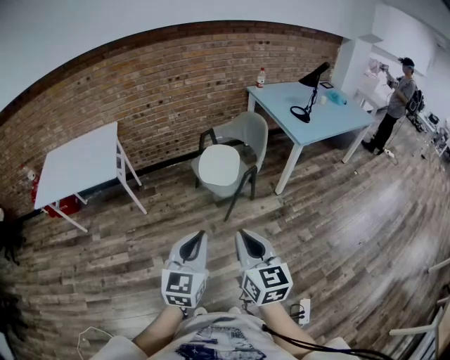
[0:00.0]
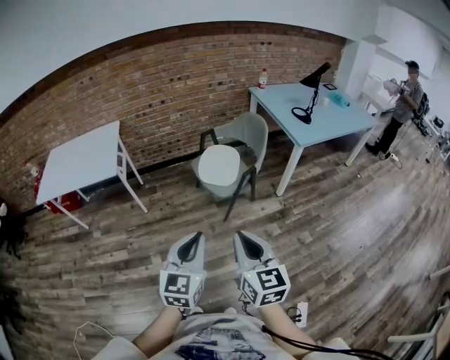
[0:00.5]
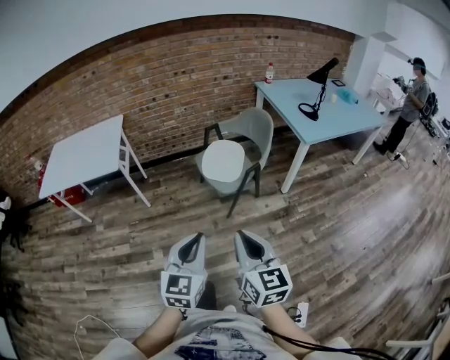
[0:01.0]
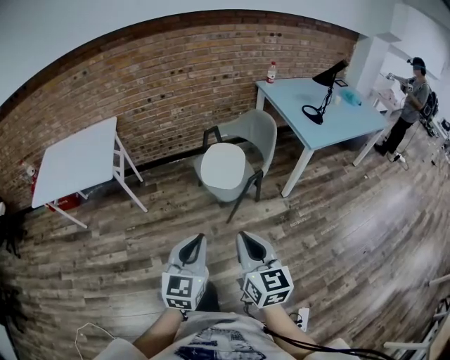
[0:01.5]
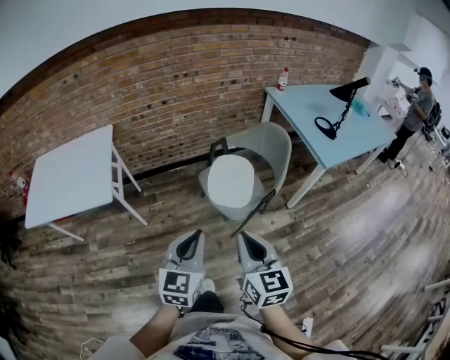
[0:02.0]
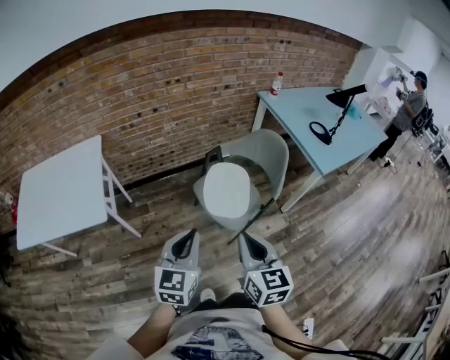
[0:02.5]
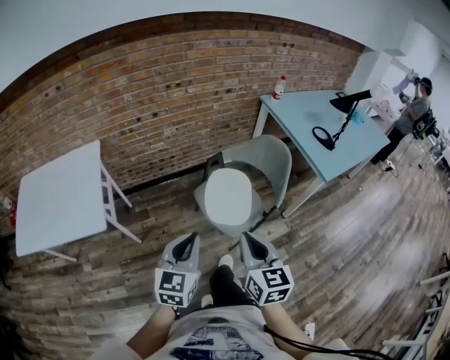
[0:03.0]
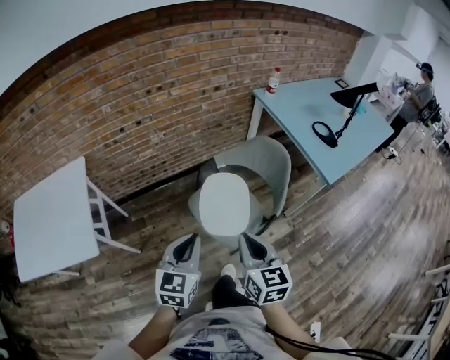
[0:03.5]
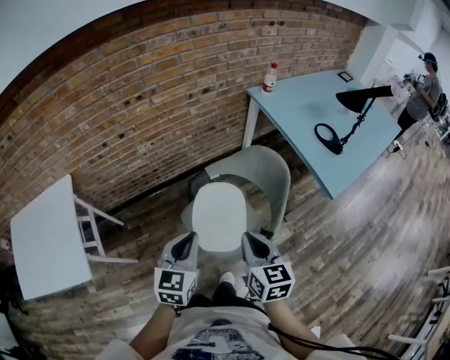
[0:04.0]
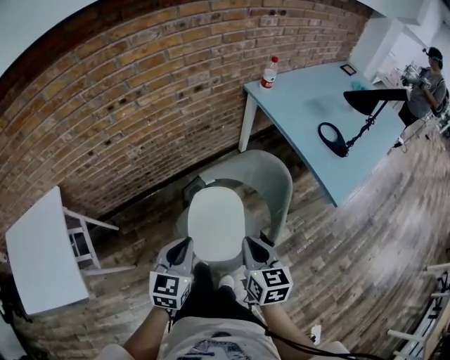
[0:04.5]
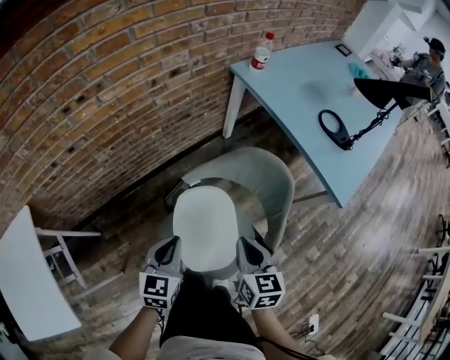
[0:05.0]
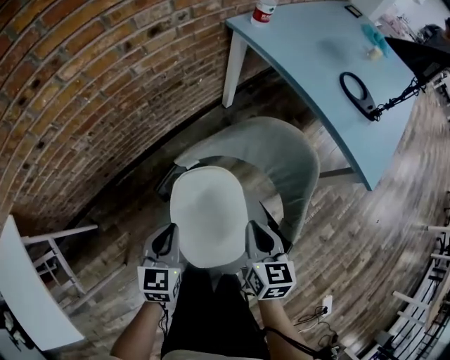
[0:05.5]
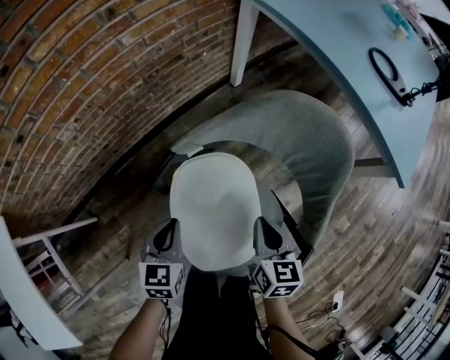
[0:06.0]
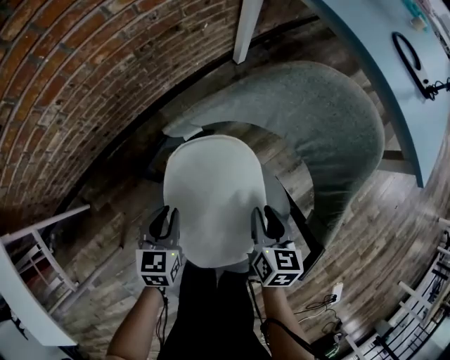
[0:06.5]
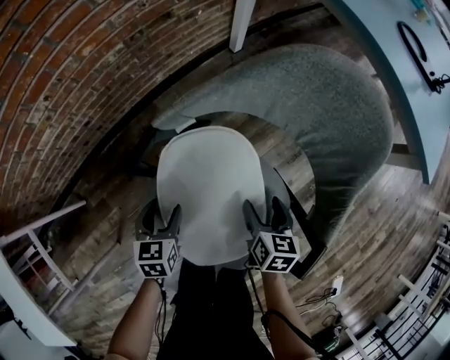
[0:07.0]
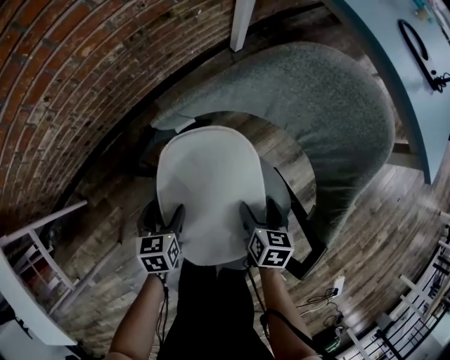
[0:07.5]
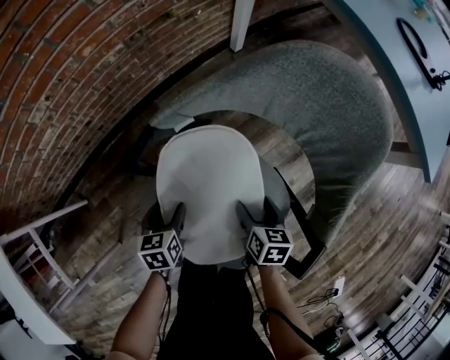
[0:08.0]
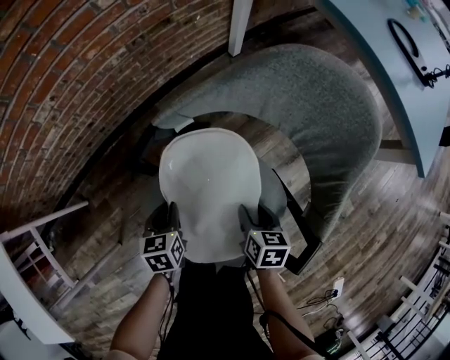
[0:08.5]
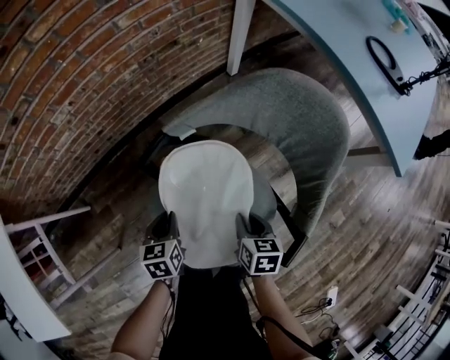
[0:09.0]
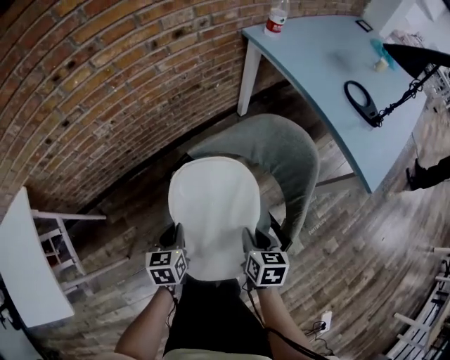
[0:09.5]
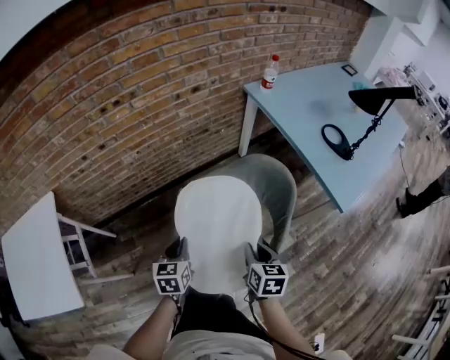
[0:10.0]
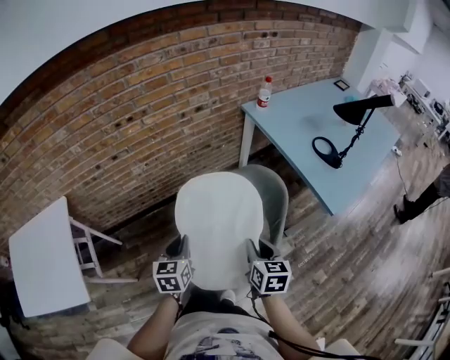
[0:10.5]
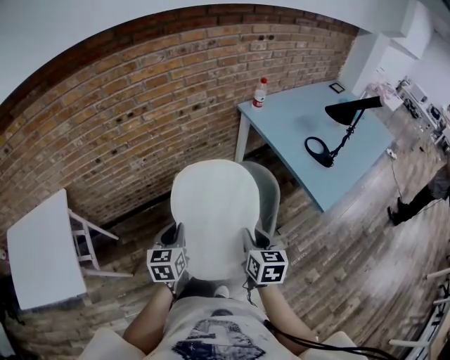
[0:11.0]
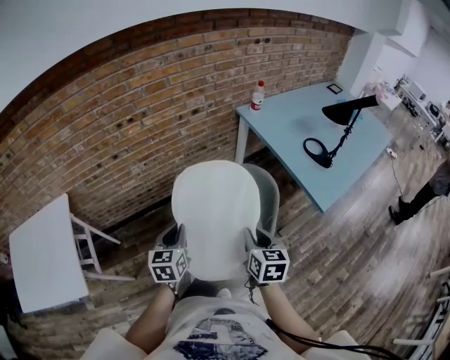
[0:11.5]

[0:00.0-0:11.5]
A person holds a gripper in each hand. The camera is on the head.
0:00.0 to 0:02.0: Both grippers travel together forward, some 25 cm.
0:02.0 to 0:04.0: The two grippers go some 35 cm forward.
0:04.0 to 0:06.0: Both grippers travel together downward and forward, about 40 cm. The right gripper rotates about 20 degrees.
0:06.0 to 0:07.5: Both grippers move downward, some 15 cm. The right gripper opens its fingers; the left gripper changes its angle by approximately 20 degrees, and opens its fingers.
0:07.5 to 0:09.5: Both grippers travel together upward, approximately 20 cm. The left gripper closes up; the right gripper closes.
0:09.5 to 0:11.5: The two grippers go roughly 30 cm upward.

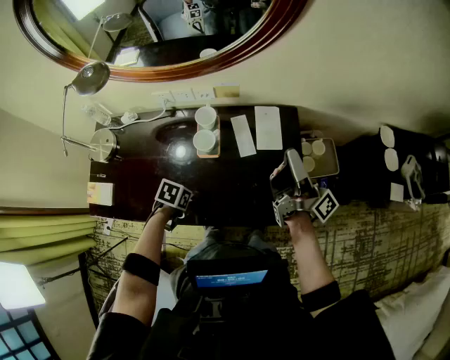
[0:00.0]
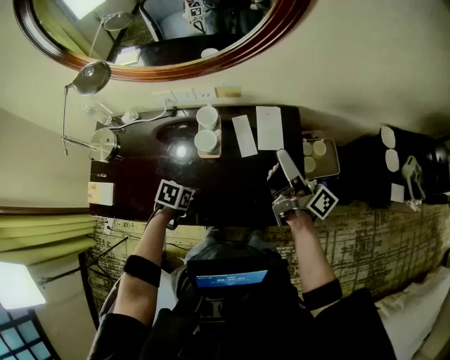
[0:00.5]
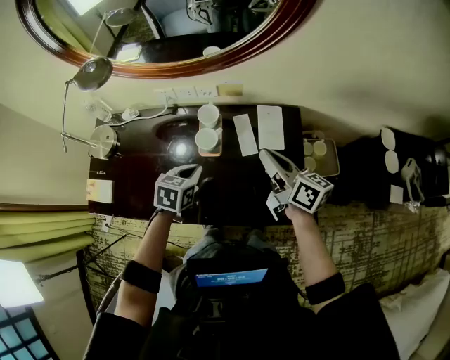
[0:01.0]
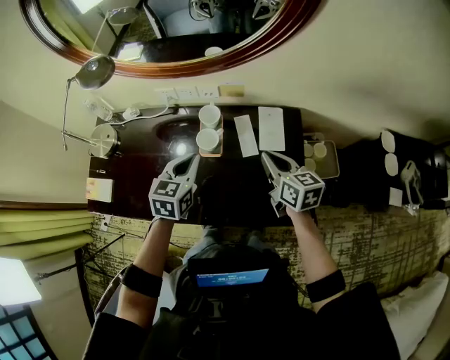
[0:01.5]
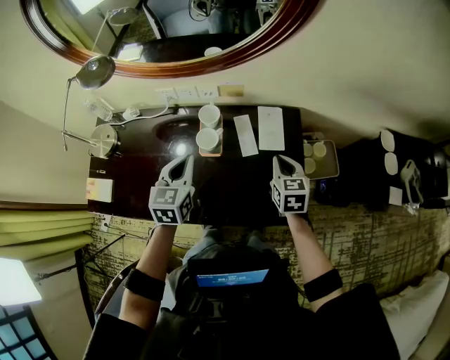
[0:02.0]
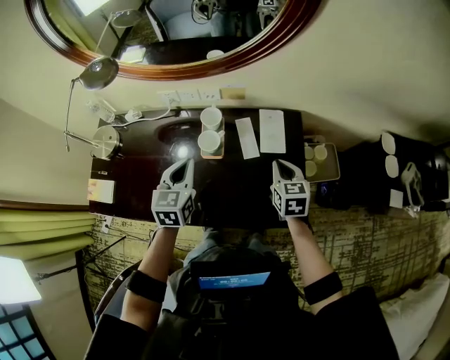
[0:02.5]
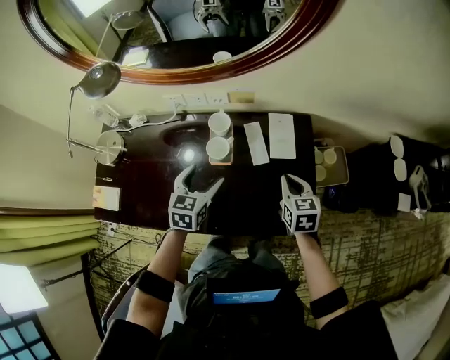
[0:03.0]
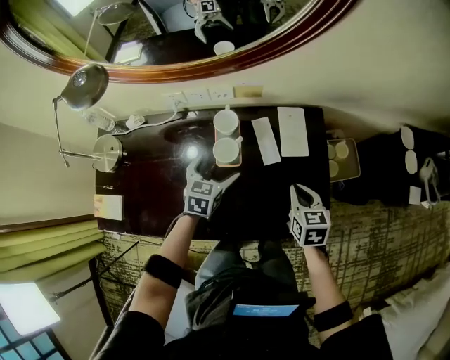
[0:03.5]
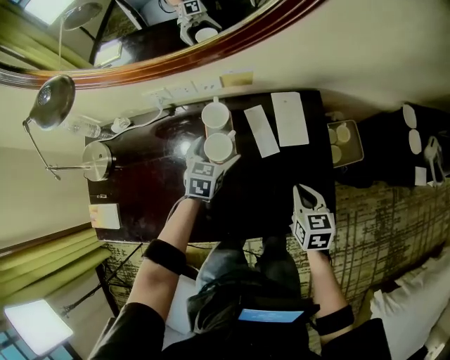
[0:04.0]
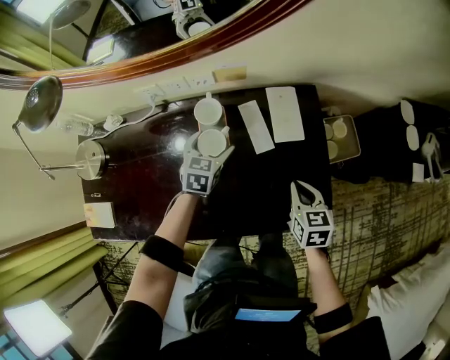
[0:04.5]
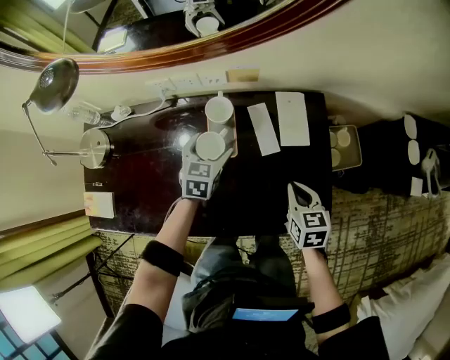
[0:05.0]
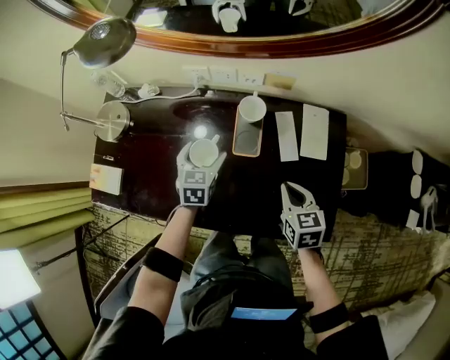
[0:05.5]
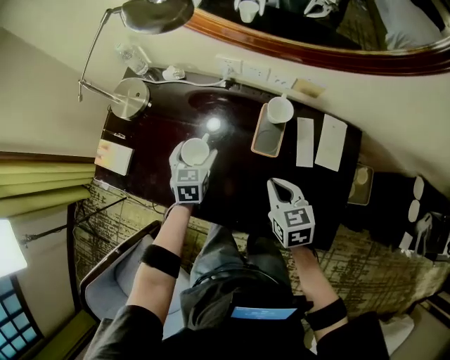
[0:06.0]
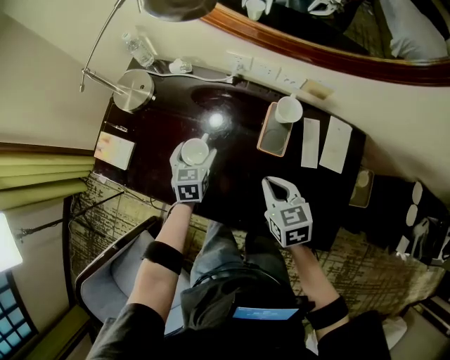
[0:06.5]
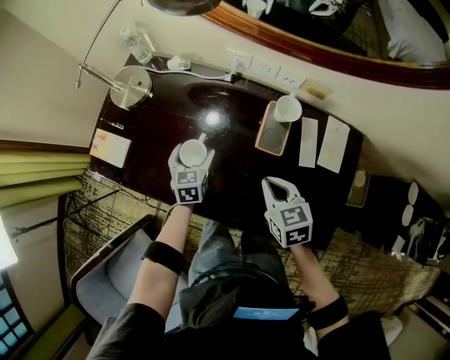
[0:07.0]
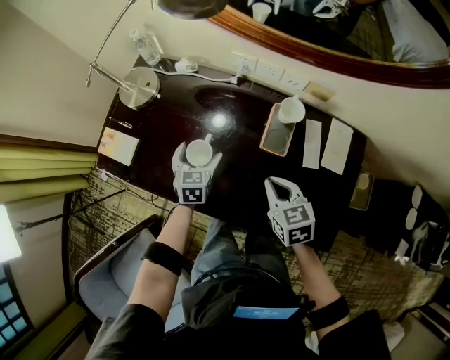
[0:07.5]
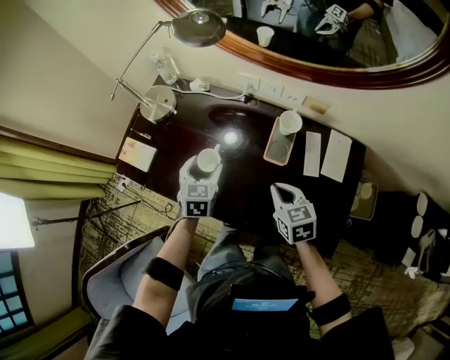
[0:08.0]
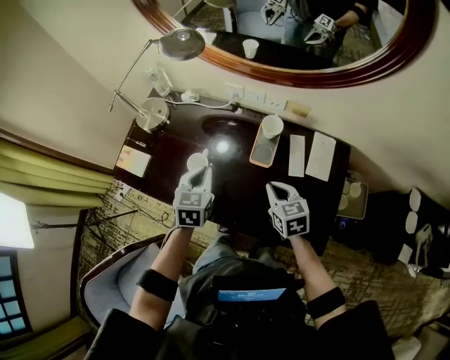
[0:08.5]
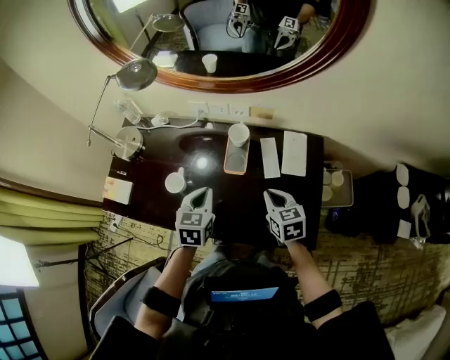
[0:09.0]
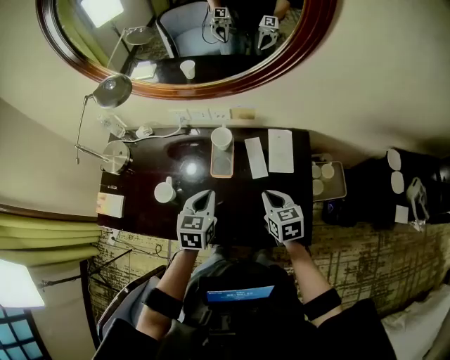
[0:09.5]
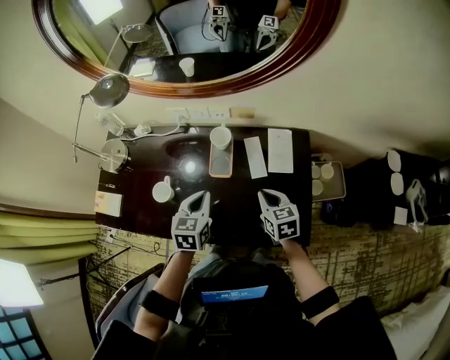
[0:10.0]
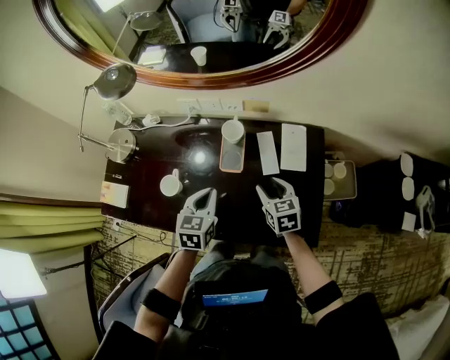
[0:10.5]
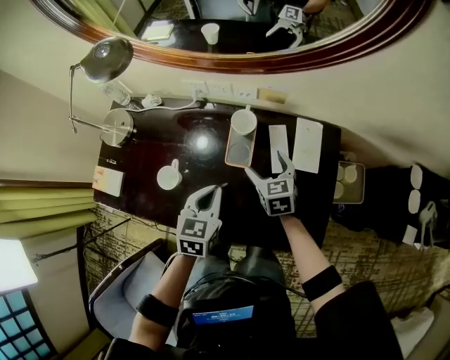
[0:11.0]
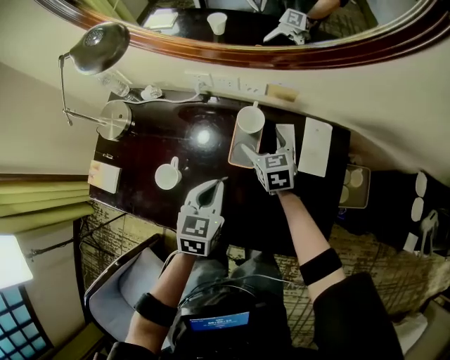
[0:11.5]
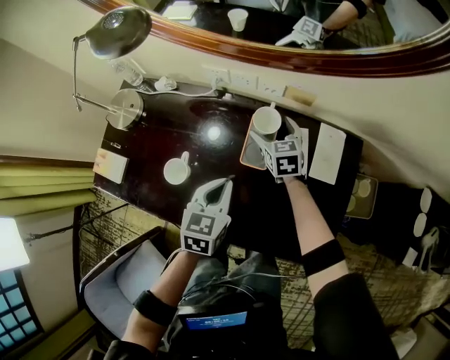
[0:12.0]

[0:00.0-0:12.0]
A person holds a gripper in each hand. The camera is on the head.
0:00.0 to 0:02.0: The left gripper travels upward by roughly 20 cm, and tips its fingers upward by approximately 40 degrees. The right gripper moves downward, some 15 cm, and points its fingers about 60 degrees further downward.
0:02.0 to 0:04.0: The left gripper moves downward and forward, about 25 cm, changes its angle by roughly 20 degrees, and opens, while the right gripper heads downward and backward, covering roughly 10 cm.
0:04.0 to 0:06.0: The right gripper moves some 20 cm, and rotates roughly 30 degrees; the left gripper shifts by approximately 25 cm, and turns by about 30 degrees.
0:06.0 to 0:08.0: The left gripper moves upward and backward, some 10 cm.
0:08.0 to 0:10.0: The grippers both shift to the right by approximately 15 cm. The left gripper closes up.
0:10.0 to 0:12.0: The left gripper shifts some 5 cm downward; the right gripper is displaced forward and to the left by about 25 cm, and opens up.

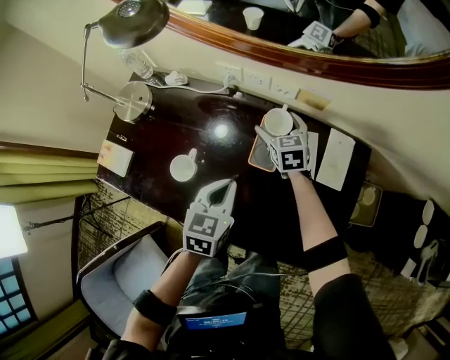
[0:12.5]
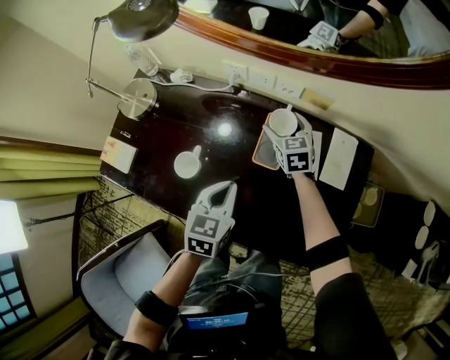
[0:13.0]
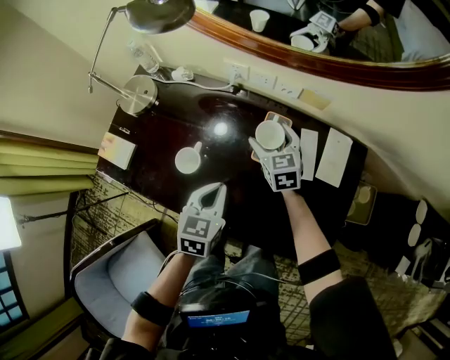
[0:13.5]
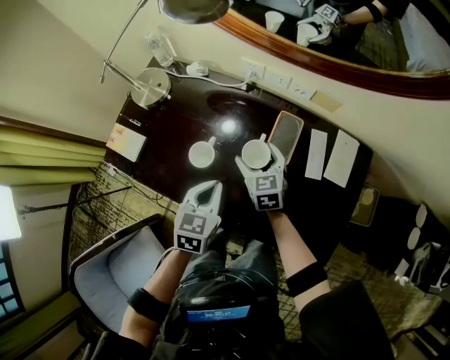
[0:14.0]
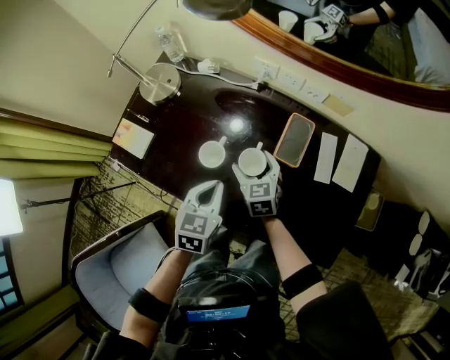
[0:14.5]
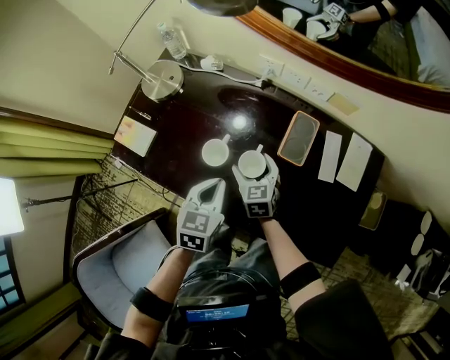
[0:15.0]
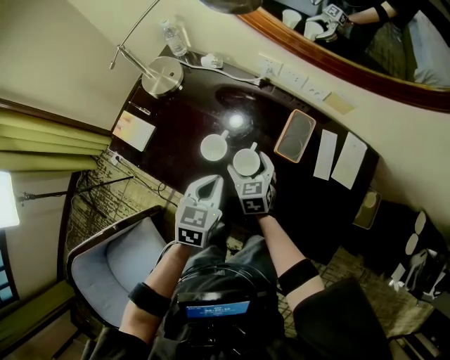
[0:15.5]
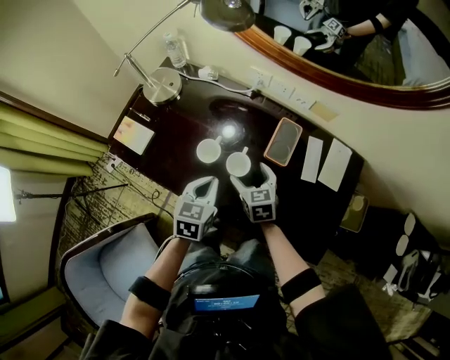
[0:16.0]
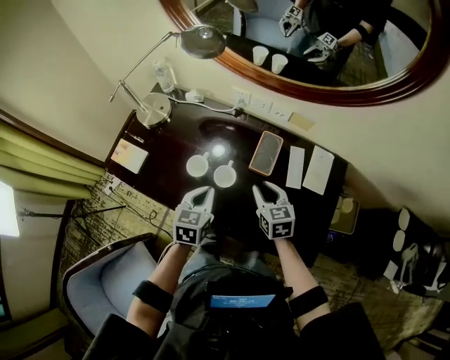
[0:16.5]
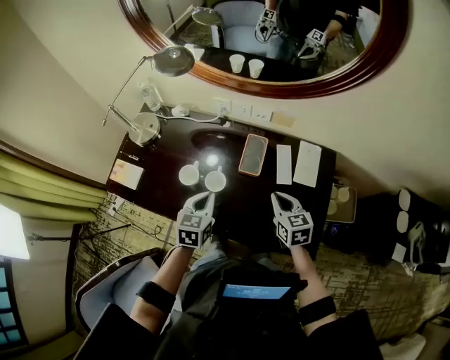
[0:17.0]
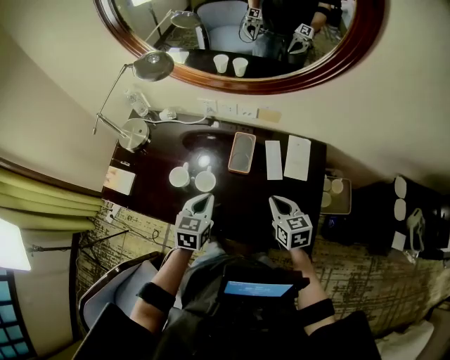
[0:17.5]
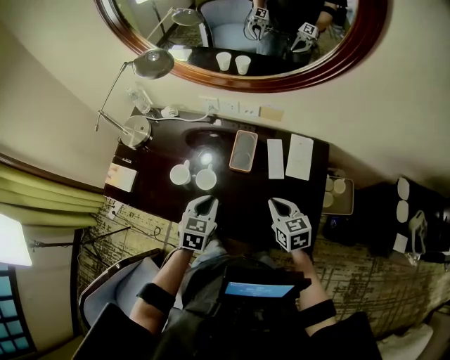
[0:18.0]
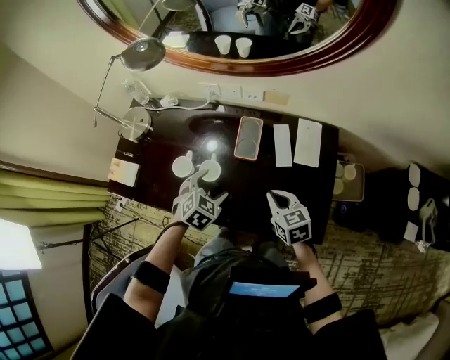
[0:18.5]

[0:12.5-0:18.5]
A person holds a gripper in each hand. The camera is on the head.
0:12.5 to 0:14.5: The right gripper moves to the left and backward, about 25 cm, while the left gripper moves to the left and backward, about 15 cm.
0:14.5 to 0:16.5: The right gripper goes some 15 cm to the right, upward and backward, and closes its fingers.
0:16.5 to 0:18.5: The right gripper goes some 10 cm to the right and backward. The left gripper heads to the right, covering some 10 cm, rotates roughly 40 degrees, and opens.
